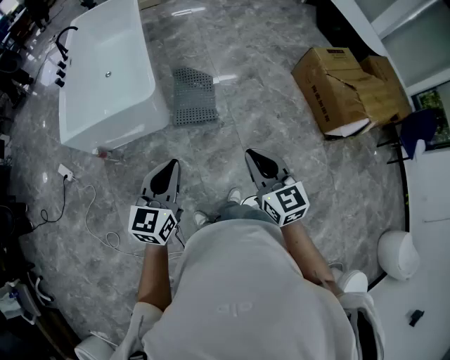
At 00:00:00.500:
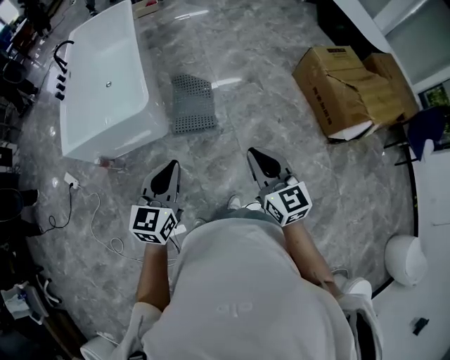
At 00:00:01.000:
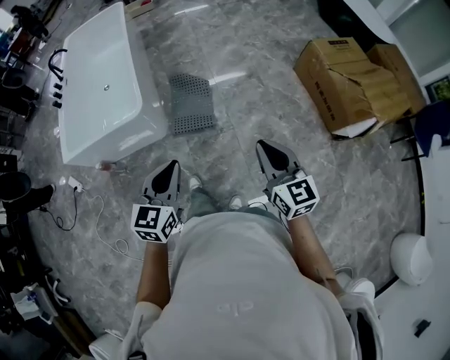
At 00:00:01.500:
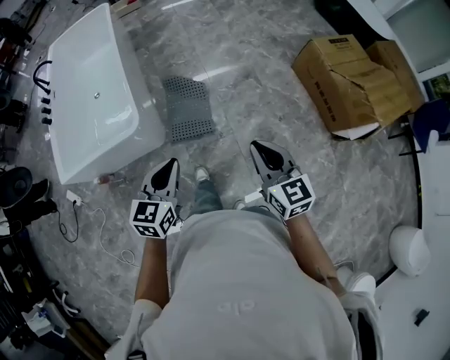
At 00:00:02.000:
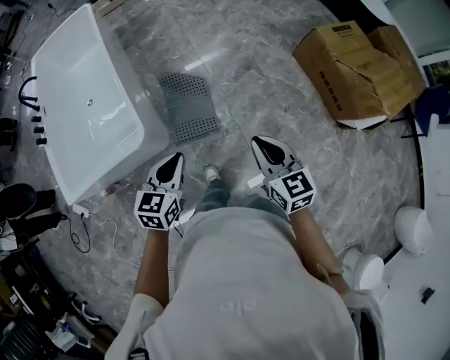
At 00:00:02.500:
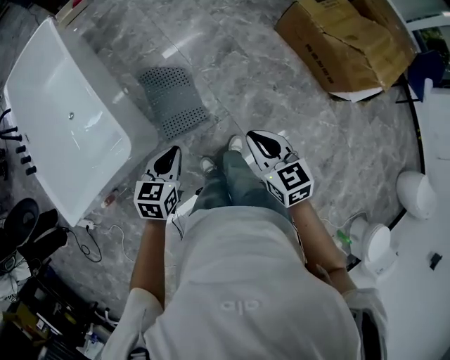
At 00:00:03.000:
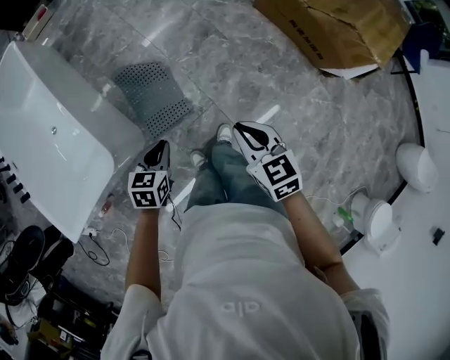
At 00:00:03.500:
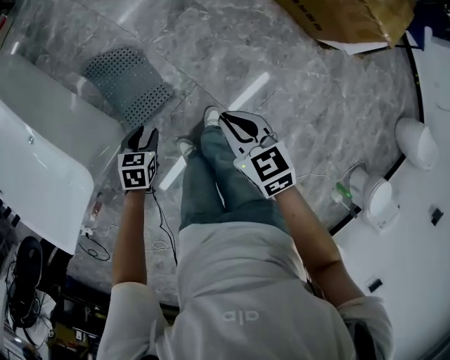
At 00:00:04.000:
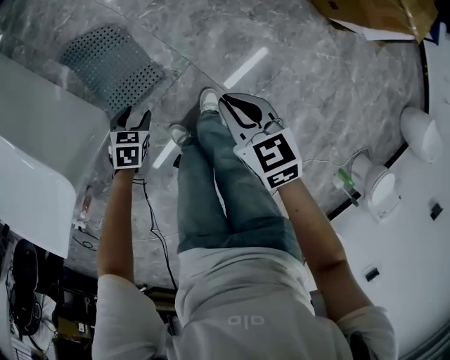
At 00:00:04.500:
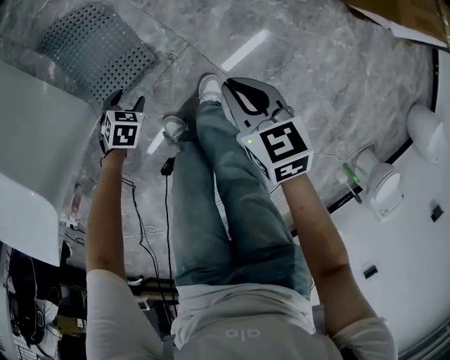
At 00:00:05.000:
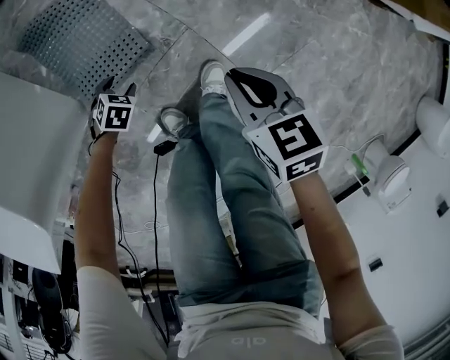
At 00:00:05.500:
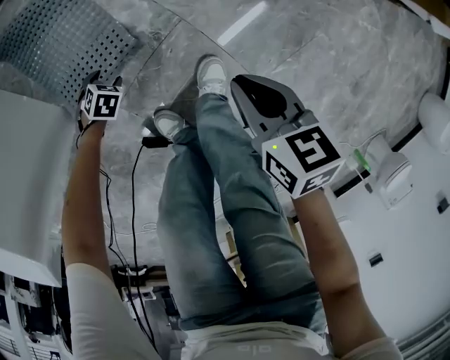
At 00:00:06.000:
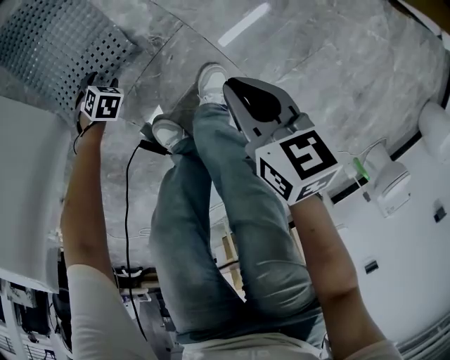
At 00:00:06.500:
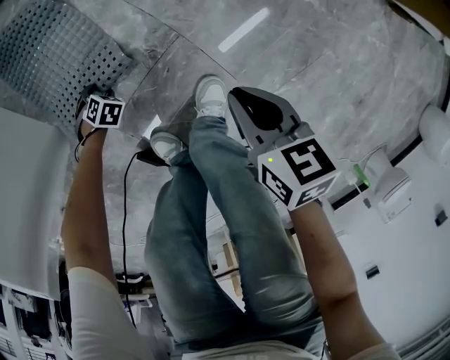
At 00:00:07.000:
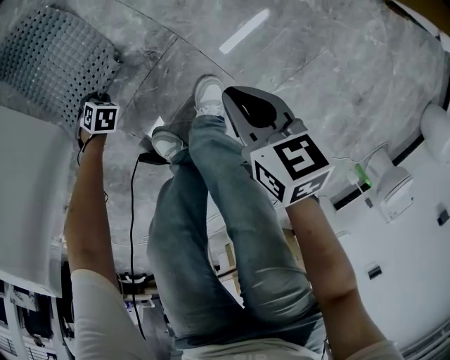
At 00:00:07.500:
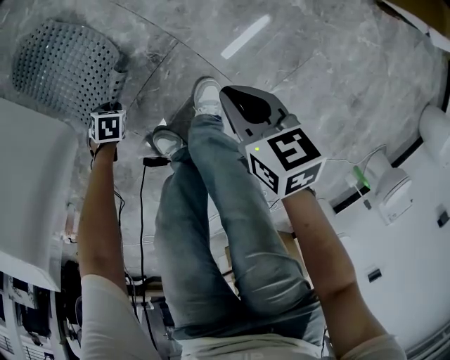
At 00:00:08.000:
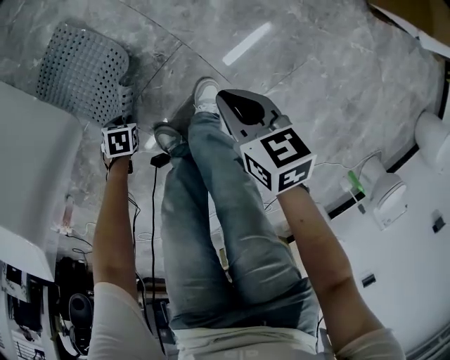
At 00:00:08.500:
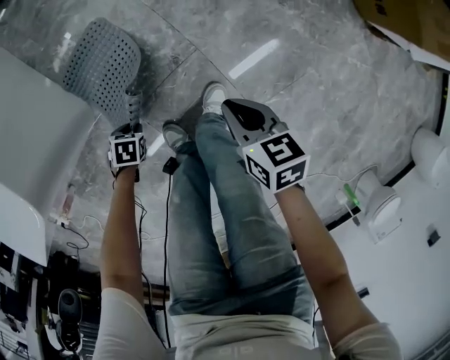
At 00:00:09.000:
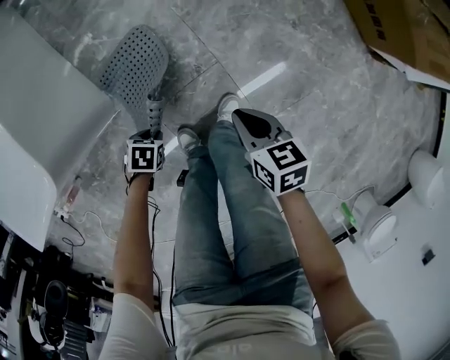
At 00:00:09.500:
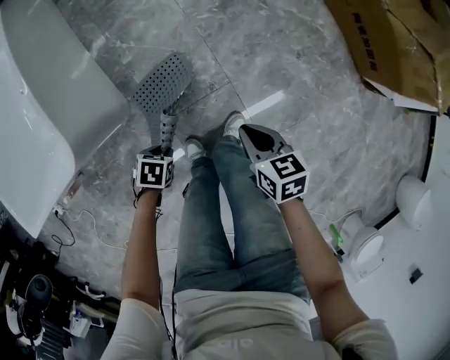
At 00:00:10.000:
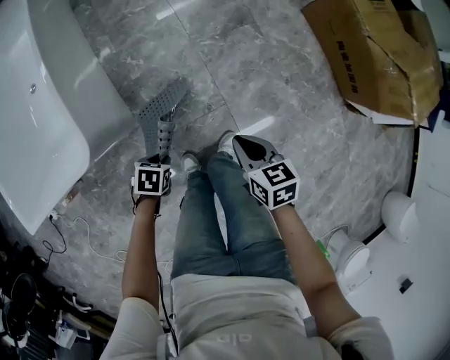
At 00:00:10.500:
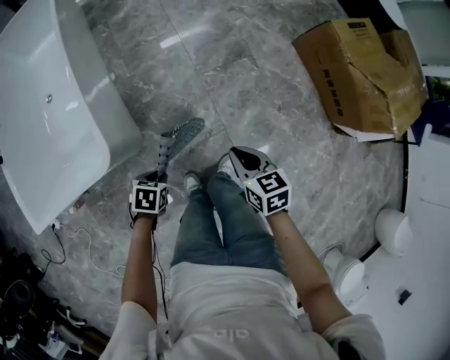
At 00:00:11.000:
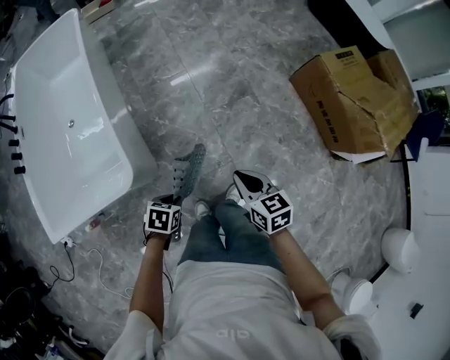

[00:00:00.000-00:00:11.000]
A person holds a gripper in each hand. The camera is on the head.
00:00:00.000 to 00:00:02.000: Both grippers travel together forward, some 35 cm. The left gripper rotates some 20 degrees.
00:00:02.000 to 00:00:03.500: The left gripper travels downward and forward by roughly 40 cm, tips its fingers downward by roughly 30 degrees, and opens up. The right gripper goes approximately 30 cm downward, forward and to the right, and rotates approximately 20 degrees.
00:00:03.500 to 00:00:05.500: Both grippers travel together downward, approximately 50 cm. The right gripper swivels some 20 degrees, while the left gripper swivels approximately 30 degrees, and opens up.
00:00:05.500 to 00:00:07.500: The right gripper moves roughly 10 cm downward and comes back. The left gripper moves roughly 10 cm downward and comes back, and closes.
00:00:07.500 to 00:00:09.000: The left gripper moves upward, about 30 cm, while the right gripper shifts roughly 15 cm upward.
00:00:09.000 to 00:00:11.000: The grippers both shift upward by some 40 cm. The left gripper changes its angle by some 20 degrees. Meanwhile the right gripper turns by approximately 20 degrees.

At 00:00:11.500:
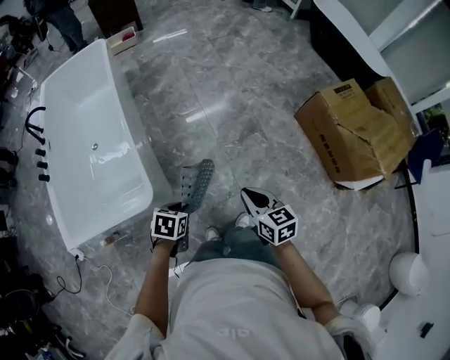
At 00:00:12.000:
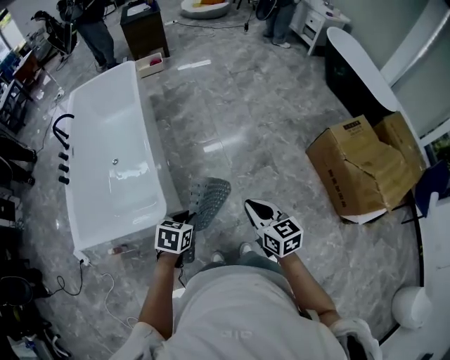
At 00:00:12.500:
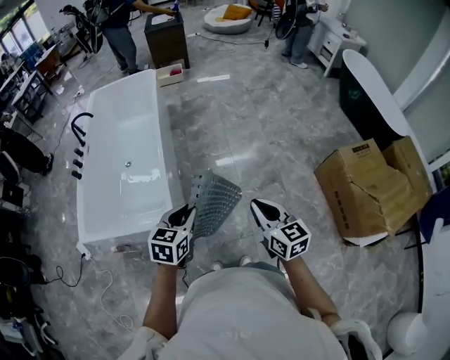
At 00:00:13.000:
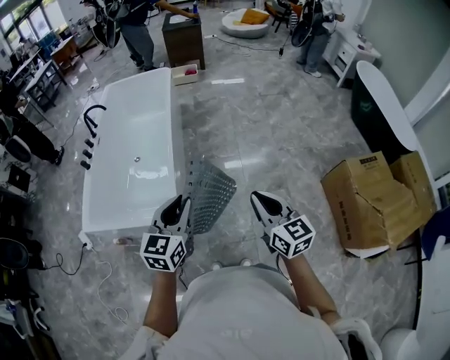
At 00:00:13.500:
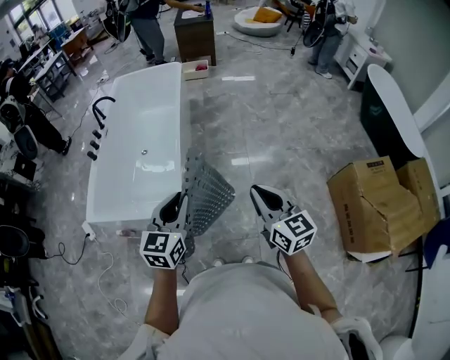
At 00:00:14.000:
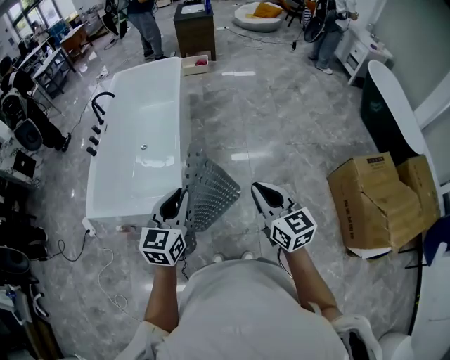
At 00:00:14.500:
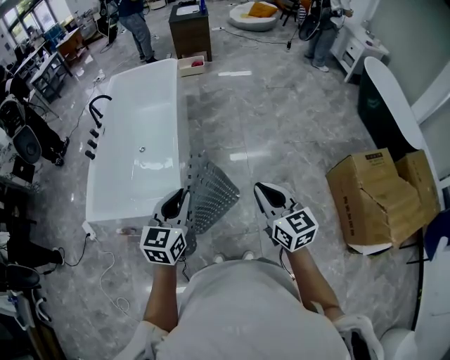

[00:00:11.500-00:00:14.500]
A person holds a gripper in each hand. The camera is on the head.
00:00:11.500 to 00:00:13.000: The two grippers go roughly 25 cm upward. The right gripper rotates some 30 degrees; the left gripper tilts its fingers some 50 degrees upward.
00:00:13.000 to 00:00:14.500: The grippers make only small movements.

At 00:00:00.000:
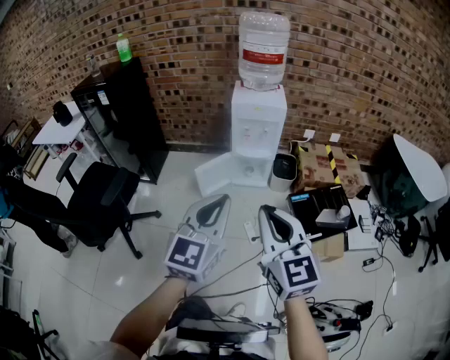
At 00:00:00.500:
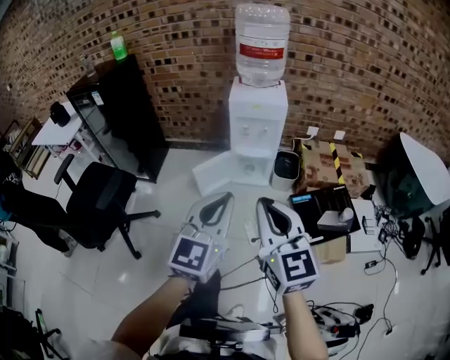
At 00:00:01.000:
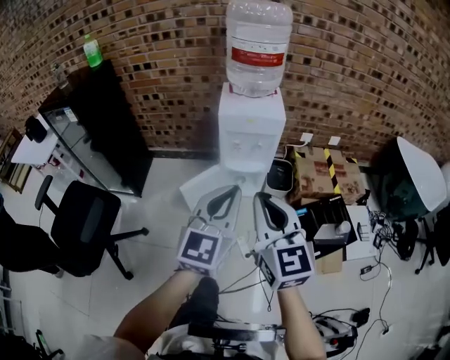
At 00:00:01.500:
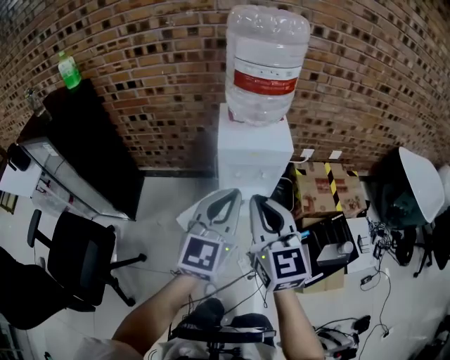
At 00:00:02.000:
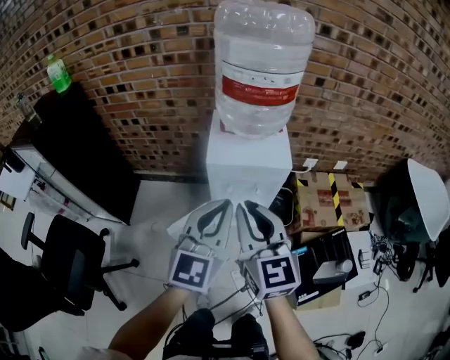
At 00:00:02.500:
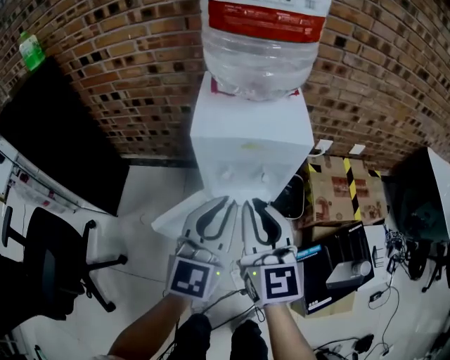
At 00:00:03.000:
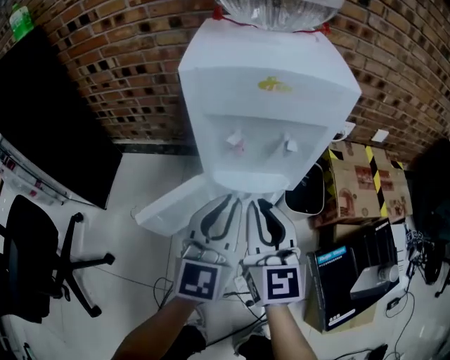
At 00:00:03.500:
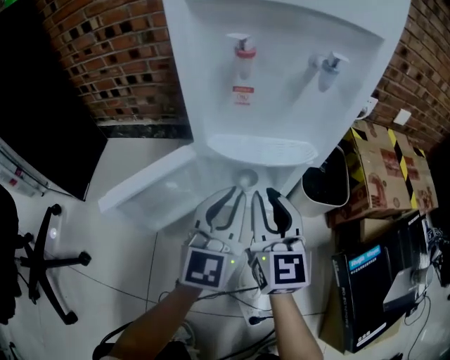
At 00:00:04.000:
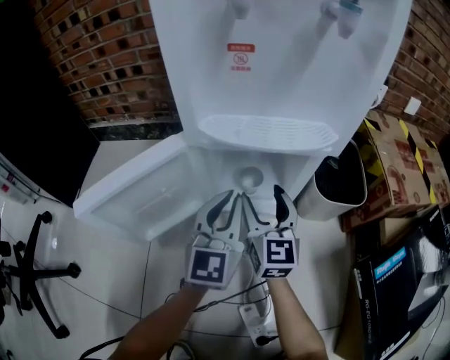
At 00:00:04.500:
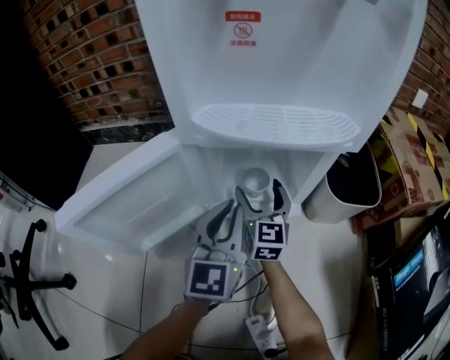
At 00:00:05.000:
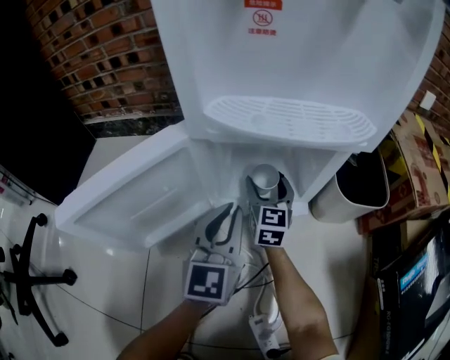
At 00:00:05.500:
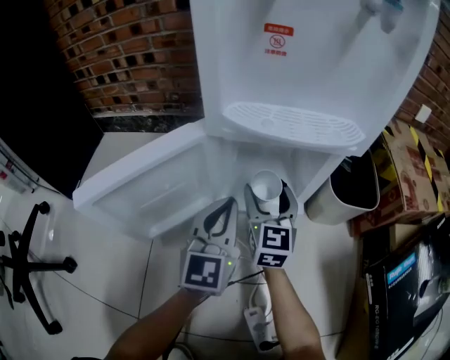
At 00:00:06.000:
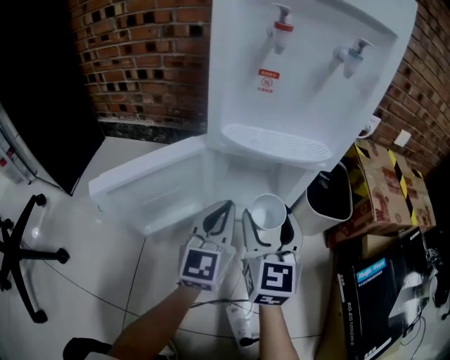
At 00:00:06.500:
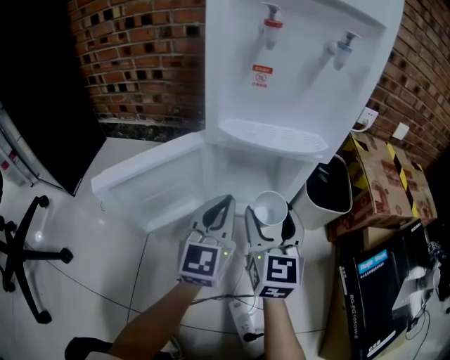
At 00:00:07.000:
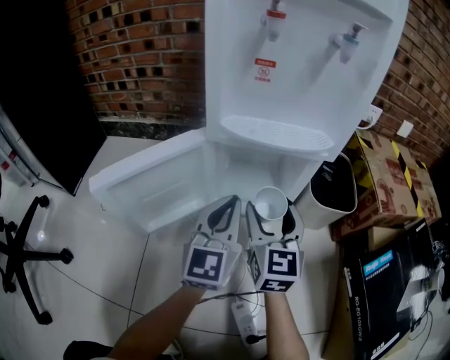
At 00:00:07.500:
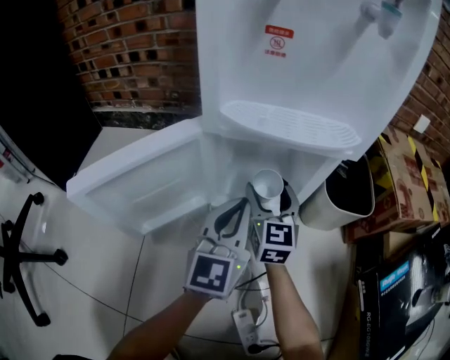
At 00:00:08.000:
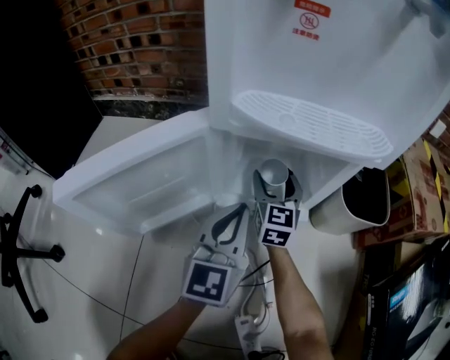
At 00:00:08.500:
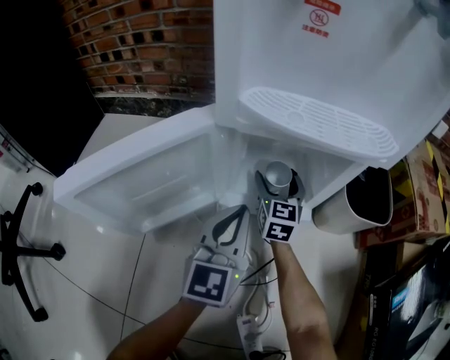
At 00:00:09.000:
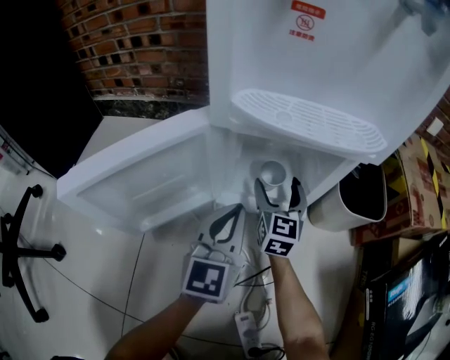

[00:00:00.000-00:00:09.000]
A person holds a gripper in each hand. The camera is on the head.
00:00:00.000 to 00:00:02.000: The pair of grippers is taken forward, approximately 50 cm.
00:00:02.000 to 00:00:04.500: Both grippers travel together downward, approximately 80 cm. The right gripper opens up.
00:00:04.500 to 00:00:07.000: The left gripper is displaced upward and backward by about 10 cm. The right gripper heads upward and backward, covering roughly 20 cm.
00:00:07.000 to 00:00:09.000: The right gripper moves downward and forward, approximately 20 cm, while the left gripper is displaced downward by roughly 10 cm.

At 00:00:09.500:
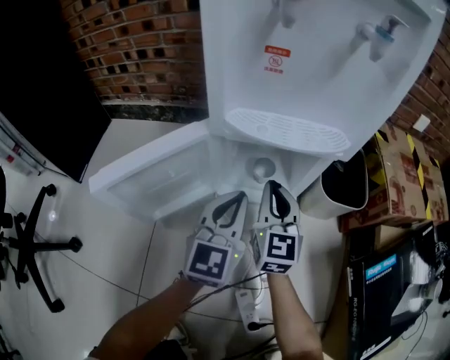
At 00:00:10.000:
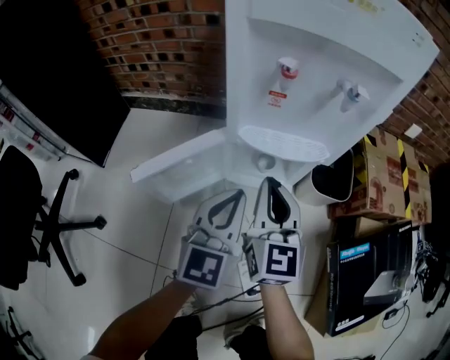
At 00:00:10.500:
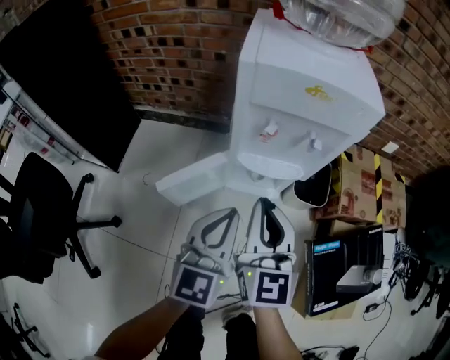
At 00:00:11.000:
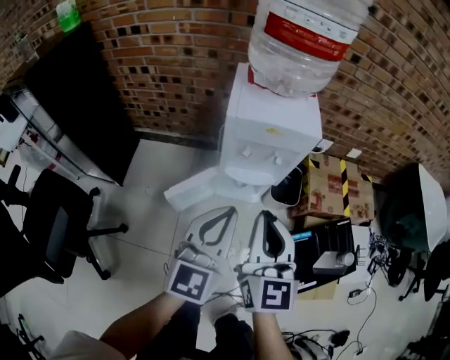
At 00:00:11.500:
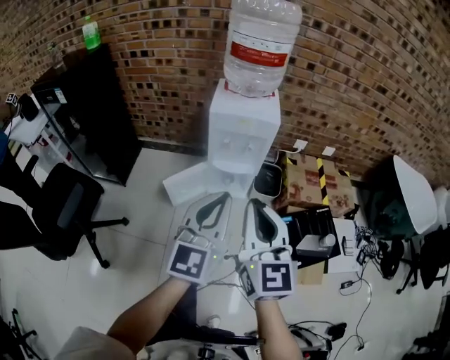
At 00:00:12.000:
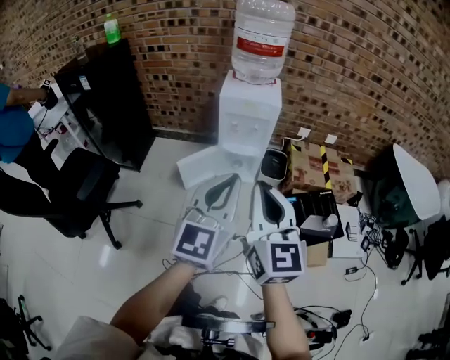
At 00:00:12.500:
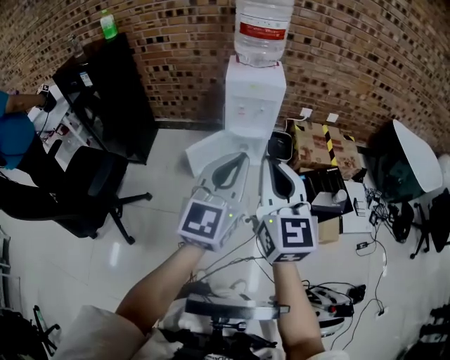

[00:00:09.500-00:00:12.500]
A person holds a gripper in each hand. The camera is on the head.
00:00:09.500 to 00:00:11.000: The right gripper goes about 60 cm upward and backward. The left gripper travels upward by about 50 cm.
00:00:11.000 to 00:00:12.500: Both grippers move backward and upward, approximately 35 cm.
